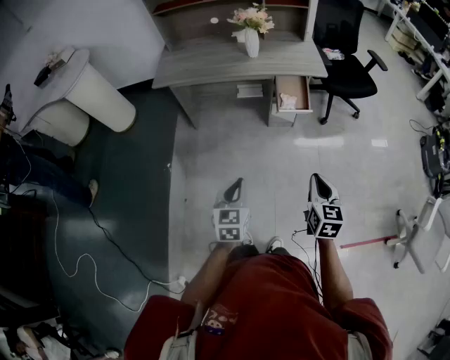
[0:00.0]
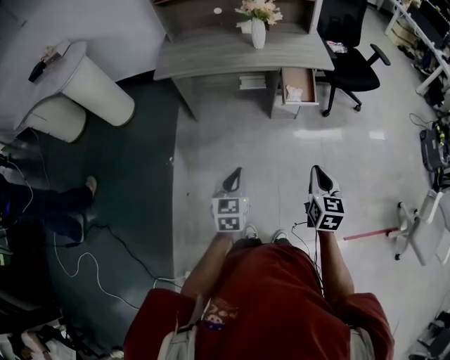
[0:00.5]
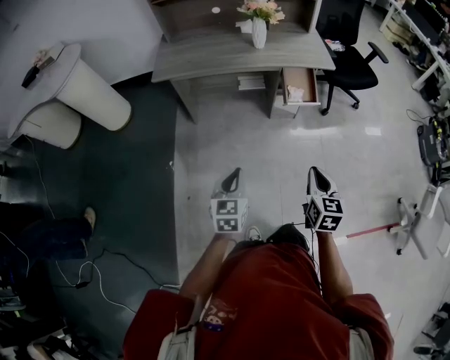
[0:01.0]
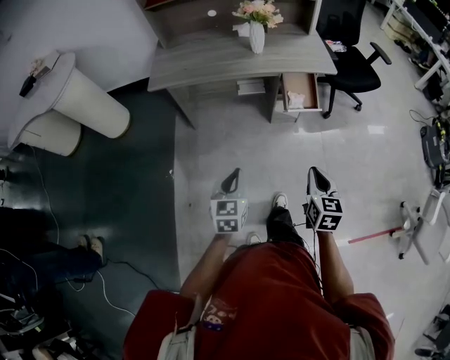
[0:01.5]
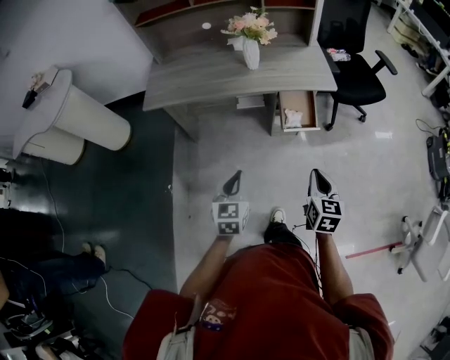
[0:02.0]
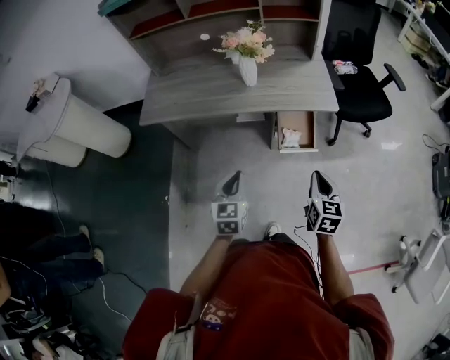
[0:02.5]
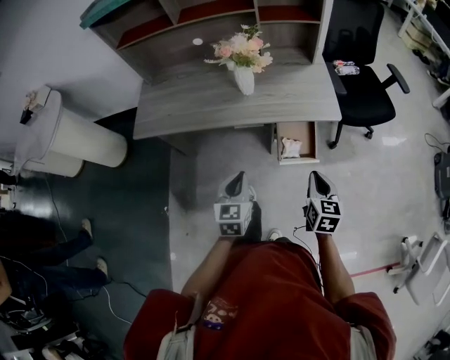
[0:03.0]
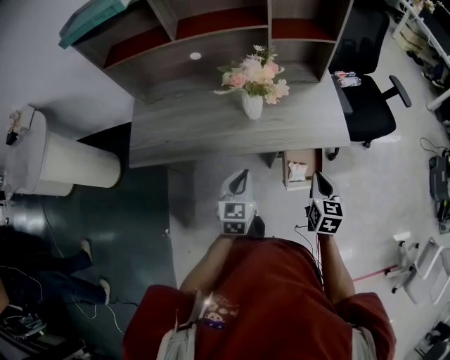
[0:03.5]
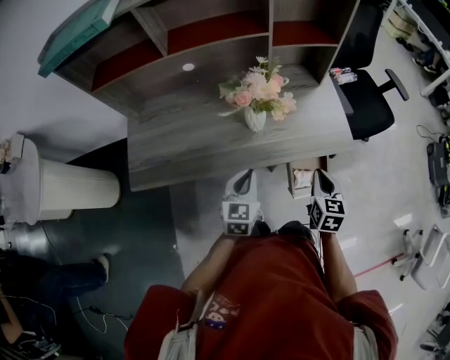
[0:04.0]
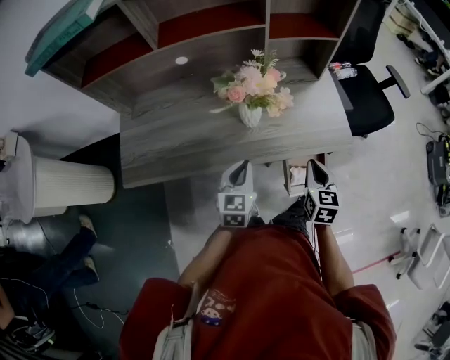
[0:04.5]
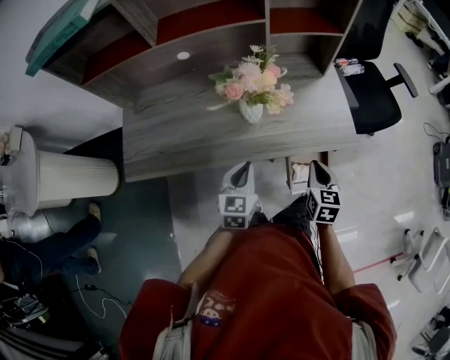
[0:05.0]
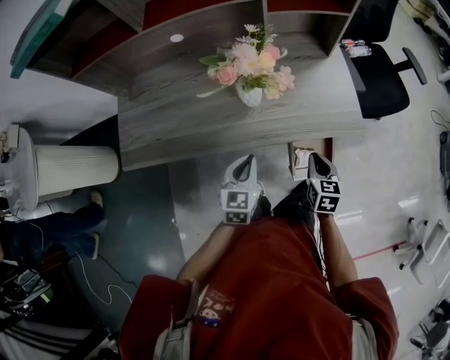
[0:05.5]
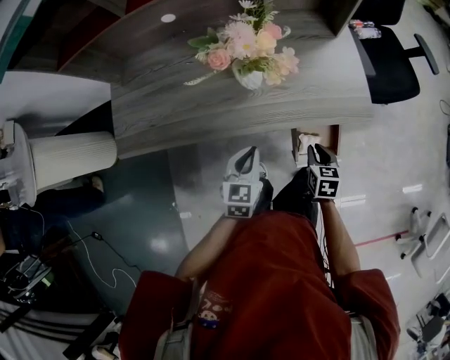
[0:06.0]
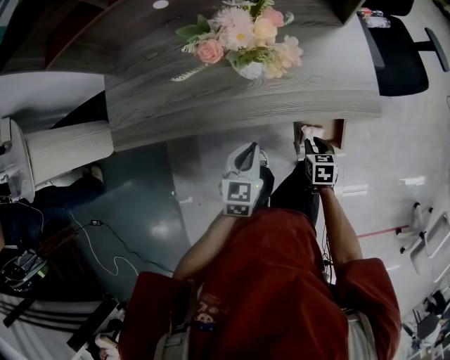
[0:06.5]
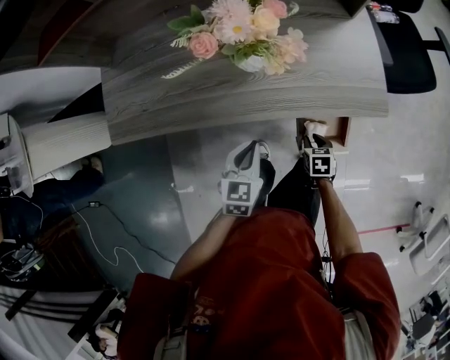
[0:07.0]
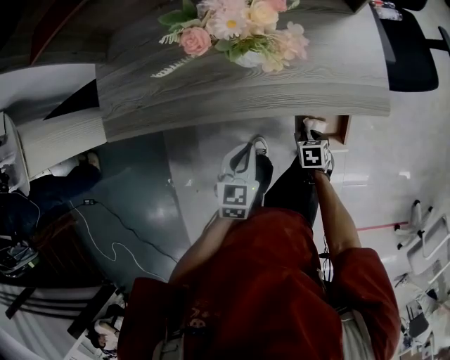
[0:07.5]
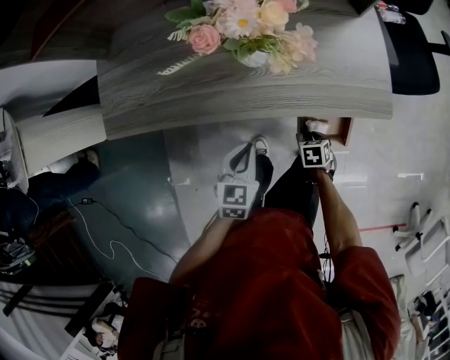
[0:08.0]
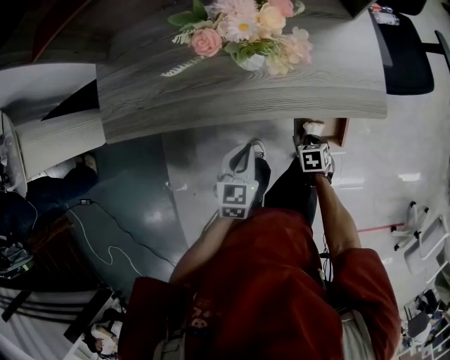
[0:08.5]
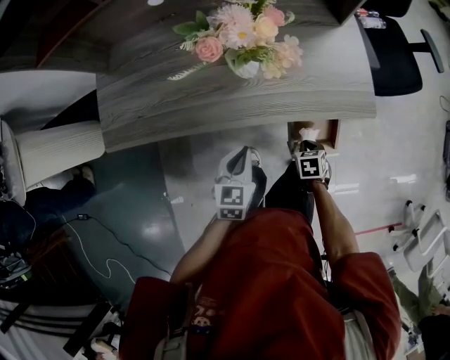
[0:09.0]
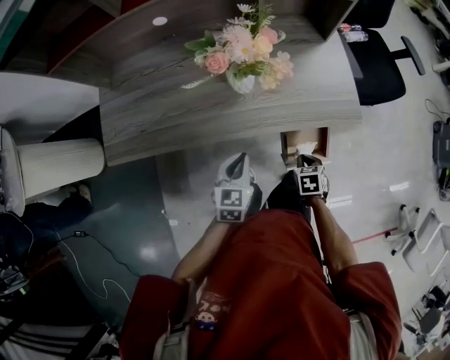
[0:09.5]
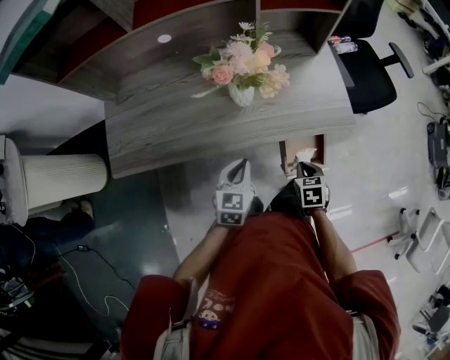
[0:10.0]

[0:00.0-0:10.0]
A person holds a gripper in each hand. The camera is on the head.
0:00.0 to 0:02.0: Both grippers travel together forward, some 20 cm.
0:02.0 to 0:04.0: Both grippers move forward, approximately 40 cm.
0:04.0 to 0:06.0: The right gripper shifts roughly 20 cm downward, and turns by roughly 20 degrees. The left gripper is displaced downward by approximately 10 cm.
0:06.0 to 0:08.0: The left gripper shifts some 5 cm downward; the right gripper travels downward by some 15 cm, and turns by approximately 30 degrees.
0:08.0 to 0:10.0: The right gripper is displaced upward by some 15 cm, while the left gripper travels upward by roughly 5 cm.

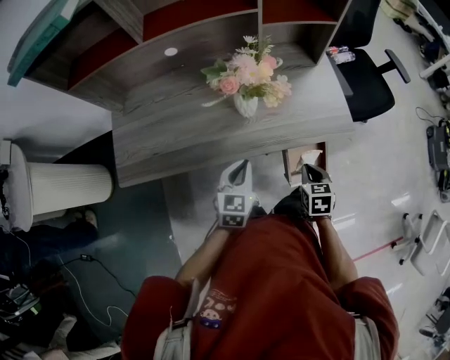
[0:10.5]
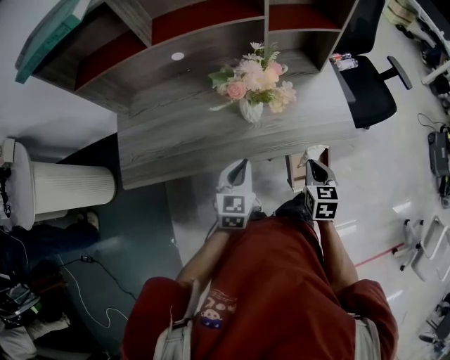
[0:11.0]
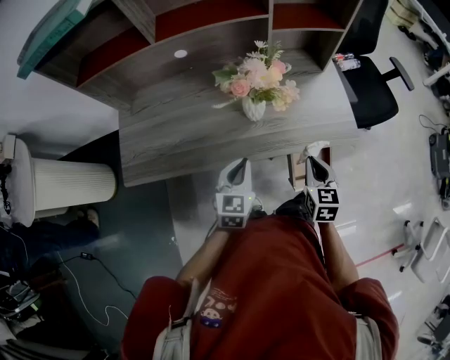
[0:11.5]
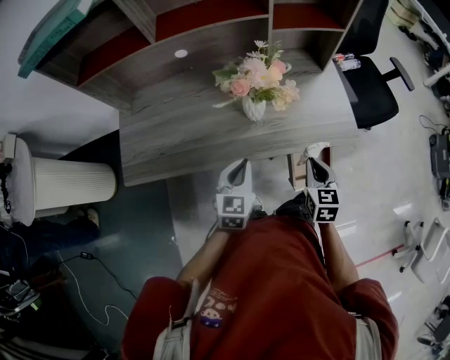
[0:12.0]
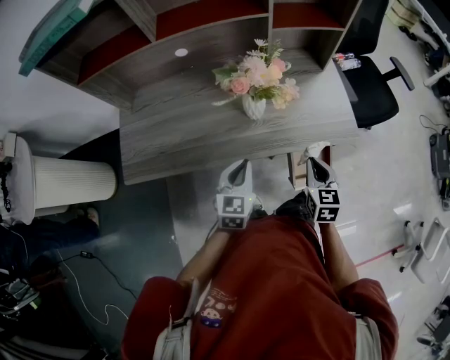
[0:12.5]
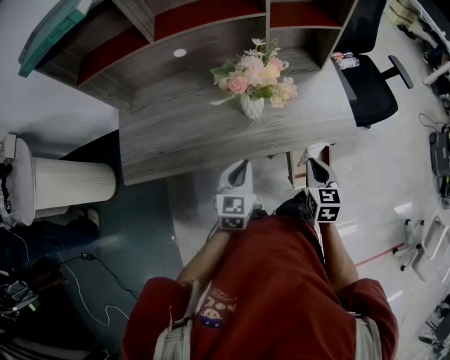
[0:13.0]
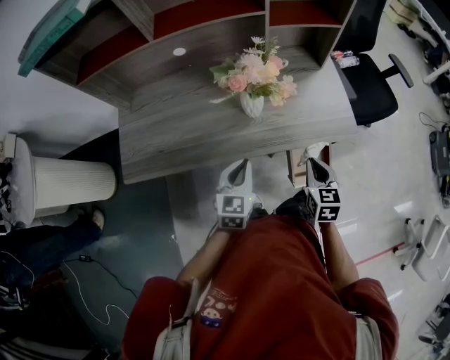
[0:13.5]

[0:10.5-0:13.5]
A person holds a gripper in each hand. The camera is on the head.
0:10.5 to 0:12.0: The right gripper is displaced upward by about 5 cm.
0:12.0 to 0:13.5: The grippers make only small movements.

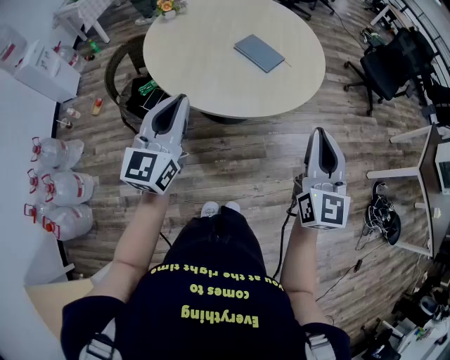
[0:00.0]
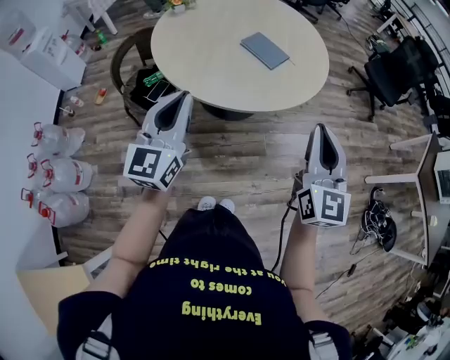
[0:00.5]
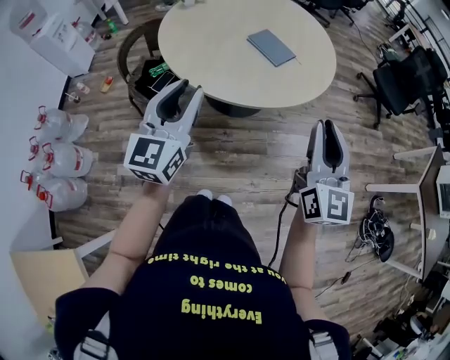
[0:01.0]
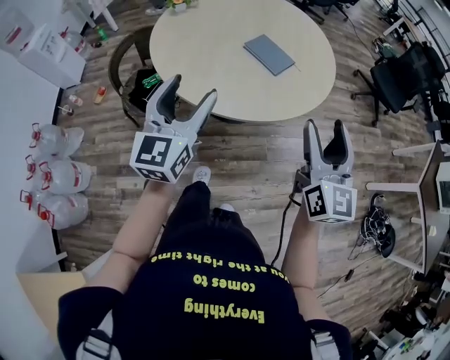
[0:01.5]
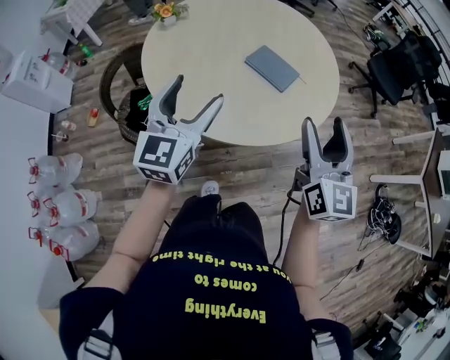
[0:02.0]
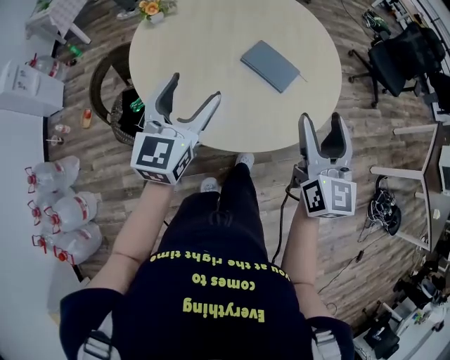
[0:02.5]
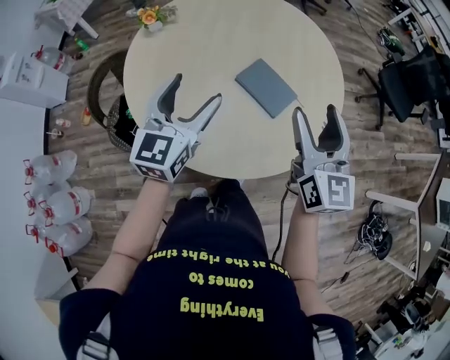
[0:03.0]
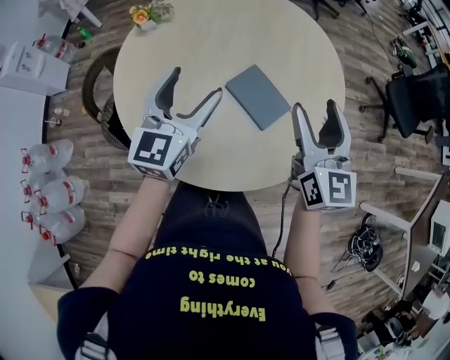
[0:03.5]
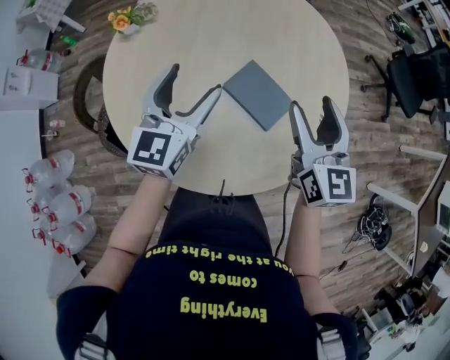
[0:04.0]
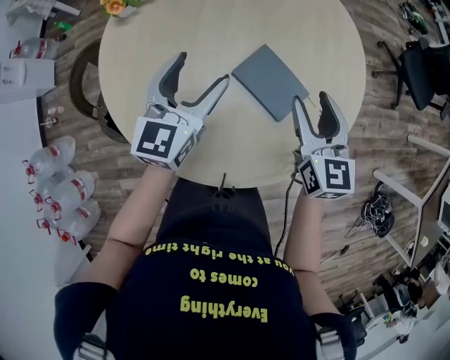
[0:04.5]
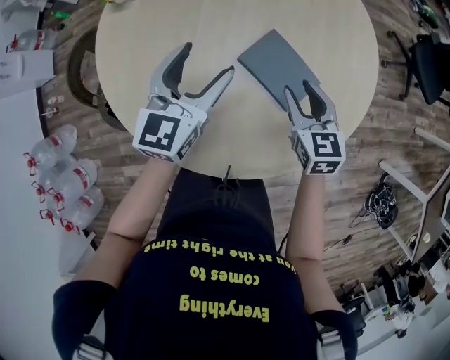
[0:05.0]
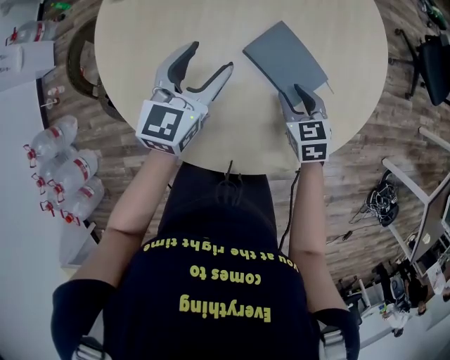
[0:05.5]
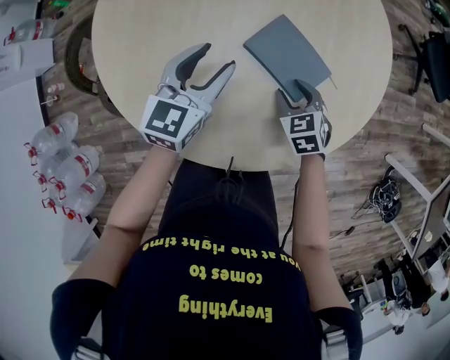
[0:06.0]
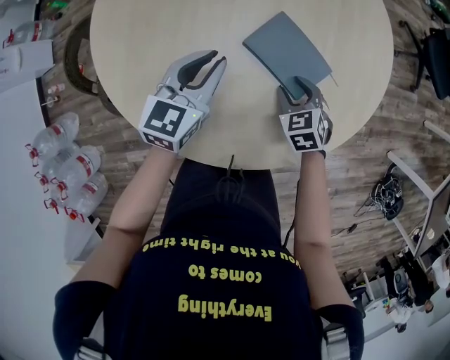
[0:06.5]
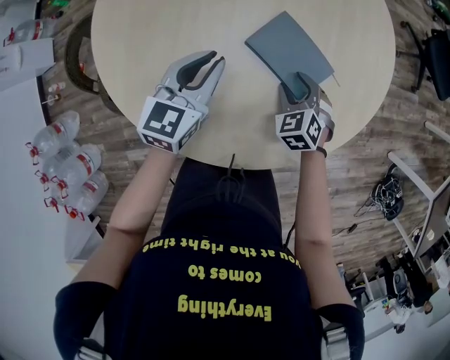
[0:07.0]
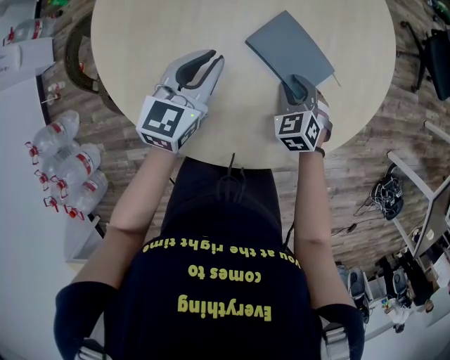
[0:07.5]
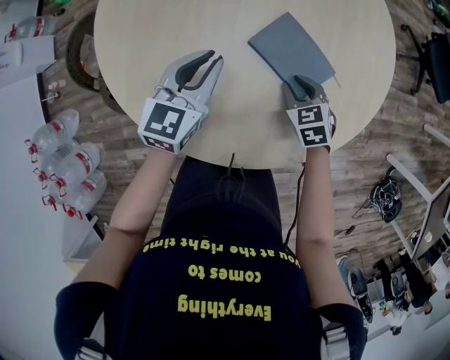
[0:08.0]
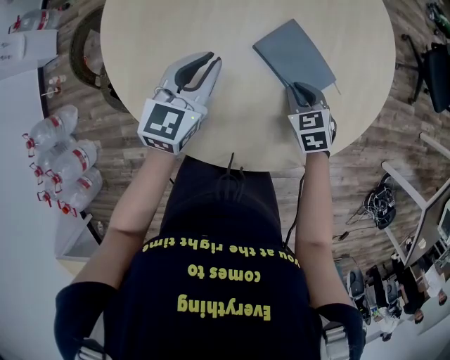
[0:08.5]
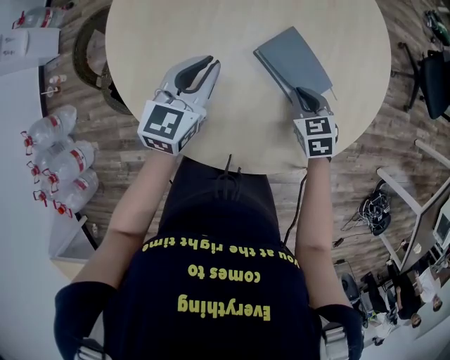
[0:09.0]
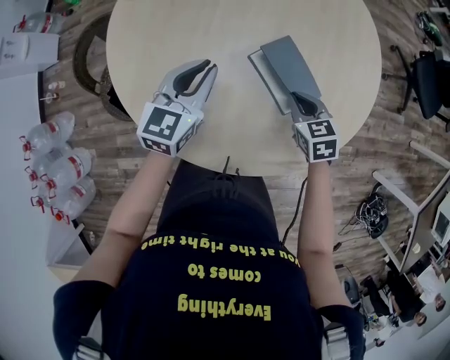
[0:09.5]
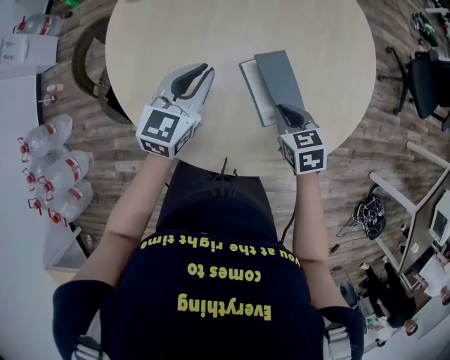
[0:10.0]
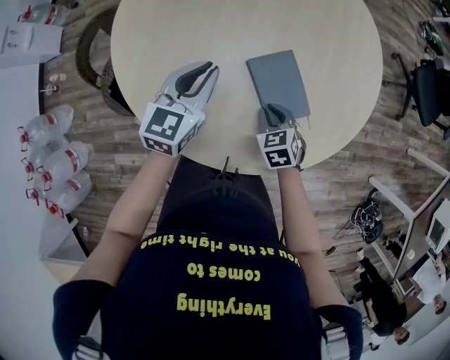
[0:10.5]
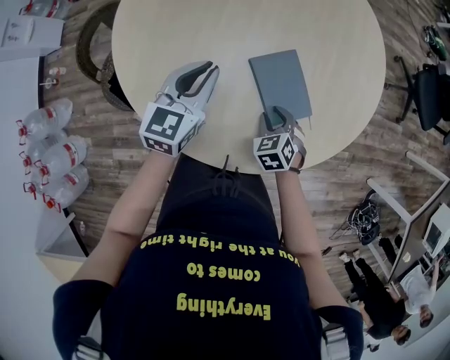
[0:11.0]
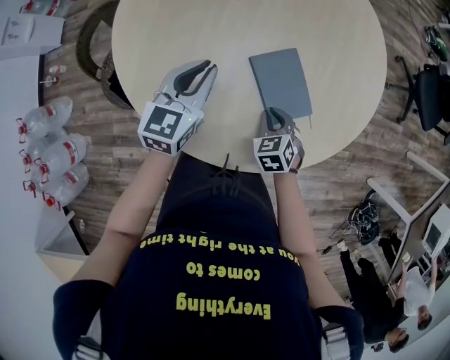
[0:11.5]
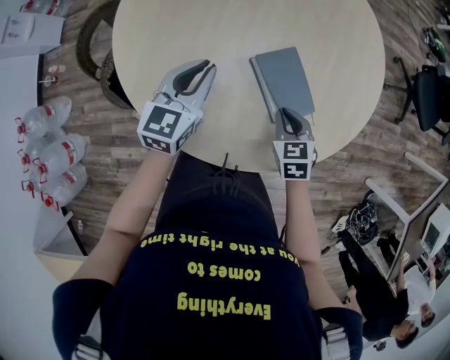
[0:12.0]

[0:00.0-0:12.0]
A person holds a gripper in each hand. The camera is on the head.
0:00.0 to 0:02.0: The right gripper moves forward and to the left, some 15 cm, and opens its fingers. The left gripper goes roughly 15 cm forward, and opens up.
0:02.0 to 0:04.0: The two grippers go some 30 cm forward.
0:04.0 to 0:06.0: The left gripper goes about 15 cm downward, and closes, while the right gripper is displaced downward by approximately 30 cm, and tilts its fingers some 50 degrees downward.
0:06.0 to 0:08.0: The left gripper closes.
0:08.0 to 0:10.0: The right gripper goes some 5 cm upward.
0:10.0 to 0:12.0: The right gripper moves approximately 10 cm downward and comes back, and opens, then closes once more.

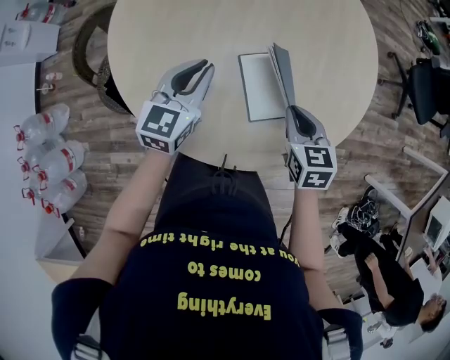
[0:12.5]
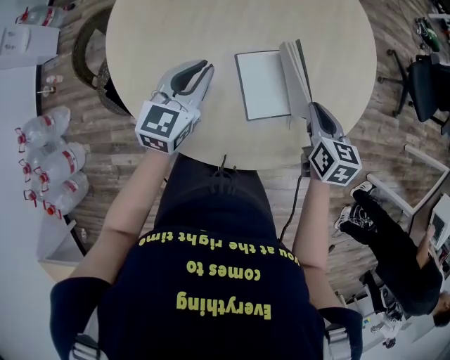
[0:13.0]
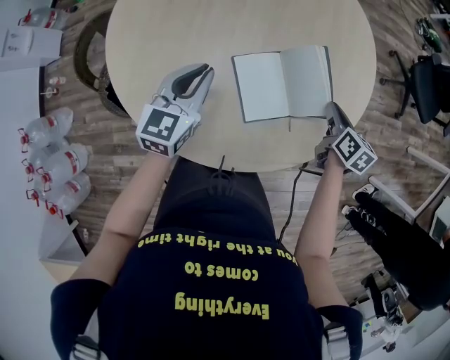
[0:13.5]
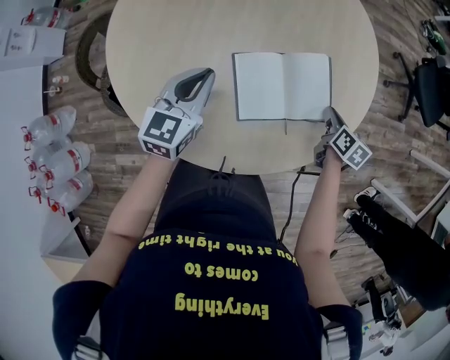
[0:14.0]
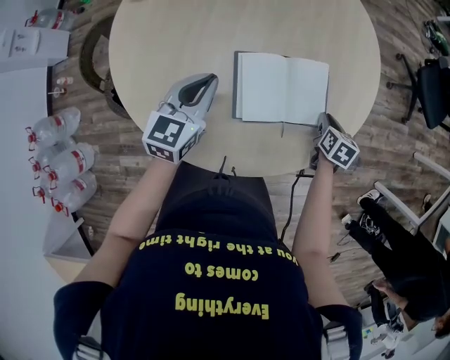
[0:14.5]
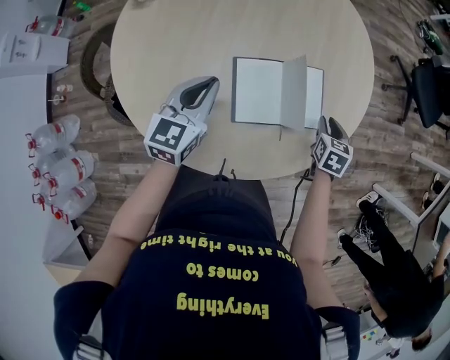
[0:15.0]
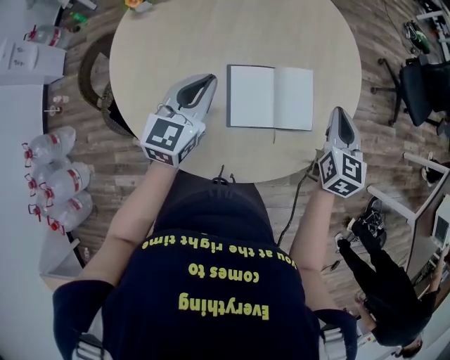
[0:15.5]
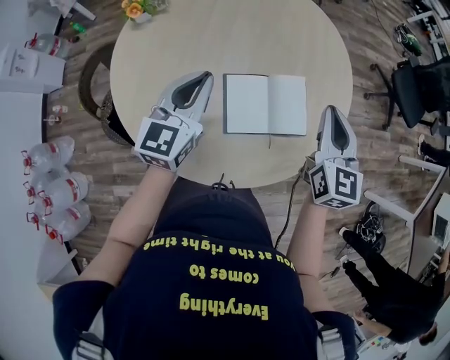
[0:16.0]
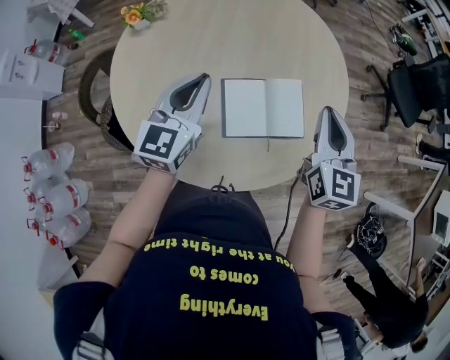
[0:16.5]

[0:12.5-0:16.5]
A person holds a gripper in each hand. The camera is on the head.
0:12.5 to 0:14.5: The right gripper moves to the right and downward, roughly 20 cm, and rotates roughly 30 degrees.
0:14.5 to 0:16.5: The right gripper goes approximately 30 cm upward, and tips its fingers upward by roughly 40 degrees. The left gripper is displaced upward by approximately 10 cm.
